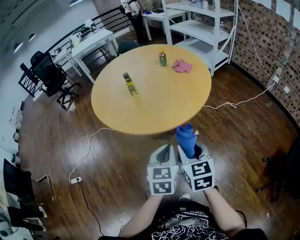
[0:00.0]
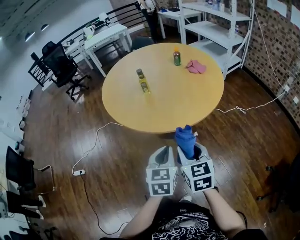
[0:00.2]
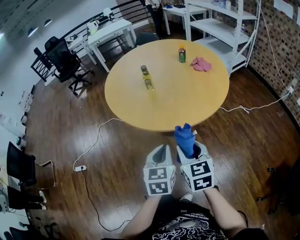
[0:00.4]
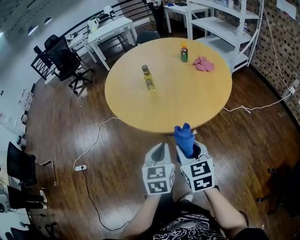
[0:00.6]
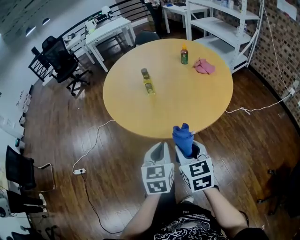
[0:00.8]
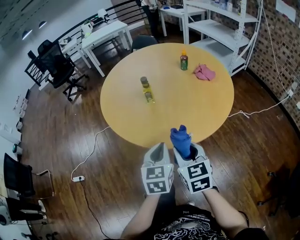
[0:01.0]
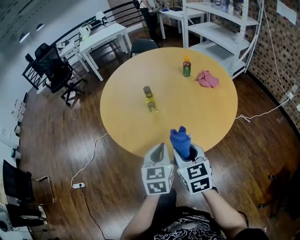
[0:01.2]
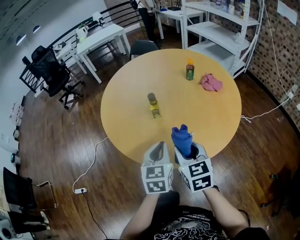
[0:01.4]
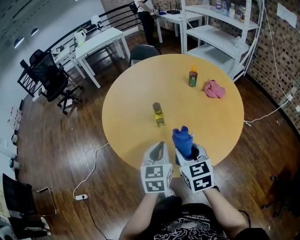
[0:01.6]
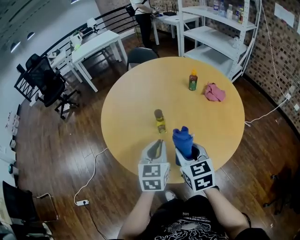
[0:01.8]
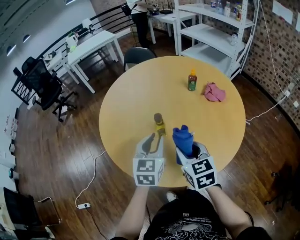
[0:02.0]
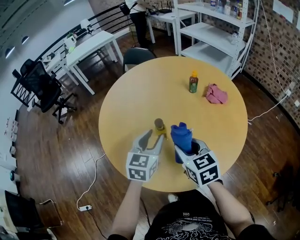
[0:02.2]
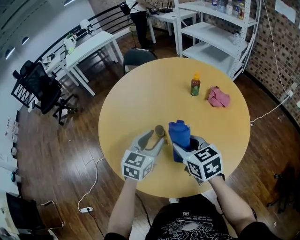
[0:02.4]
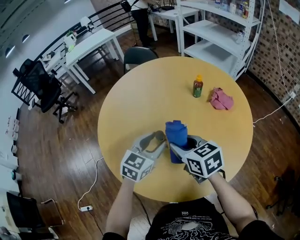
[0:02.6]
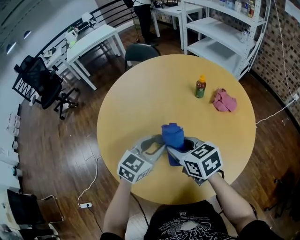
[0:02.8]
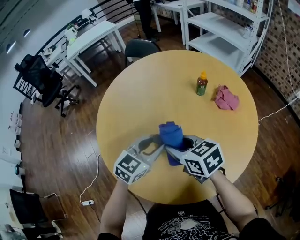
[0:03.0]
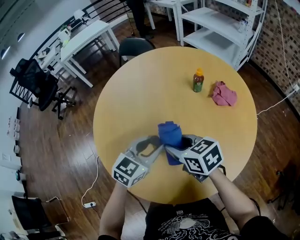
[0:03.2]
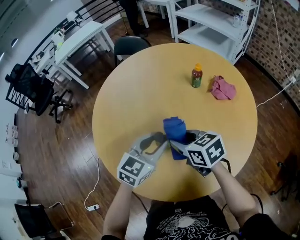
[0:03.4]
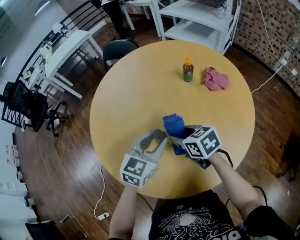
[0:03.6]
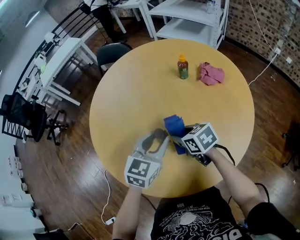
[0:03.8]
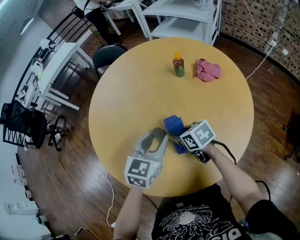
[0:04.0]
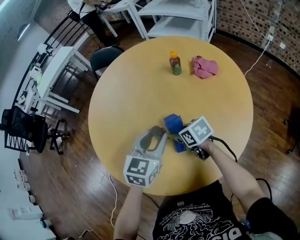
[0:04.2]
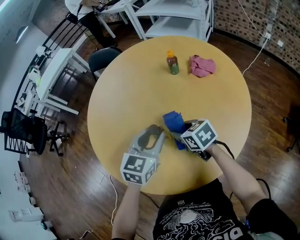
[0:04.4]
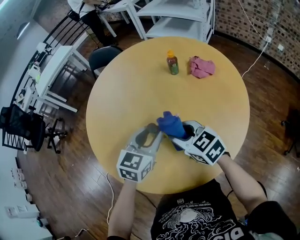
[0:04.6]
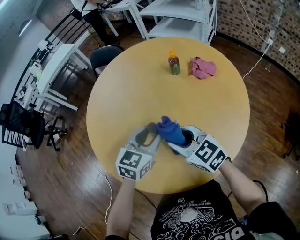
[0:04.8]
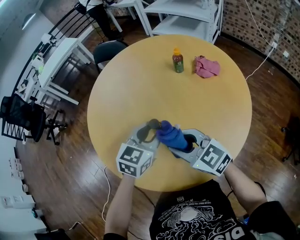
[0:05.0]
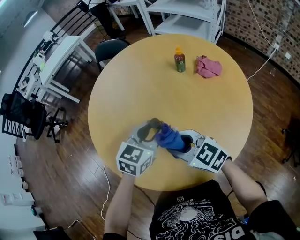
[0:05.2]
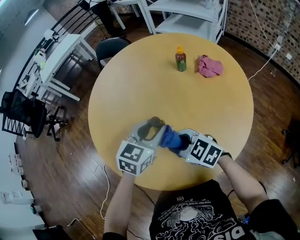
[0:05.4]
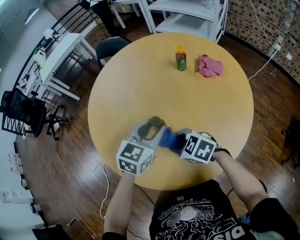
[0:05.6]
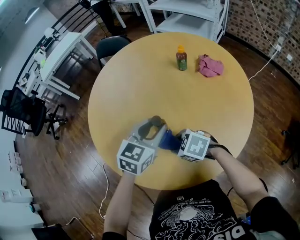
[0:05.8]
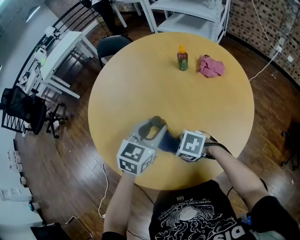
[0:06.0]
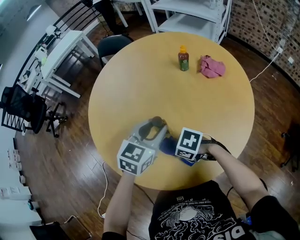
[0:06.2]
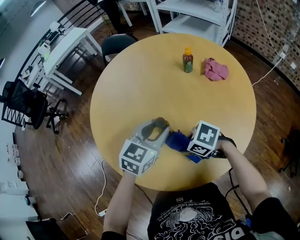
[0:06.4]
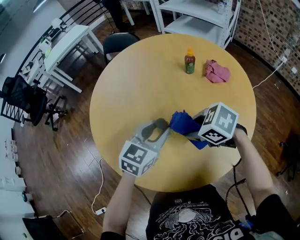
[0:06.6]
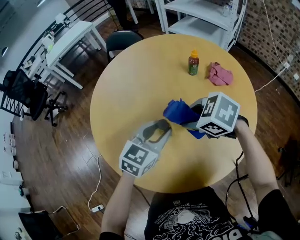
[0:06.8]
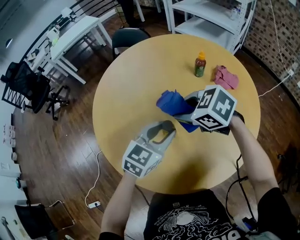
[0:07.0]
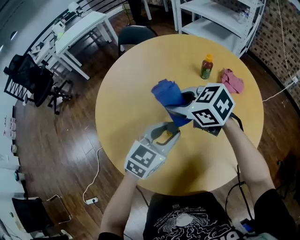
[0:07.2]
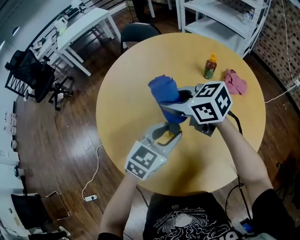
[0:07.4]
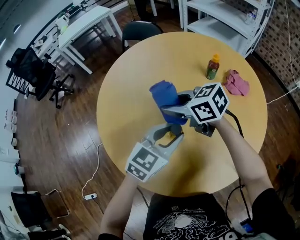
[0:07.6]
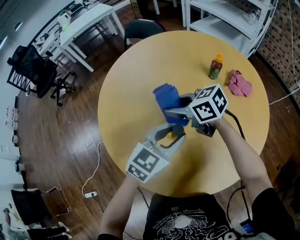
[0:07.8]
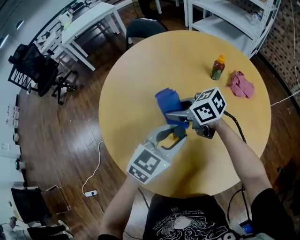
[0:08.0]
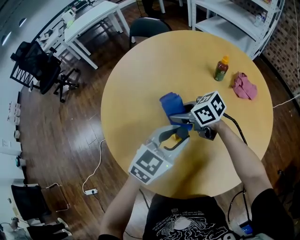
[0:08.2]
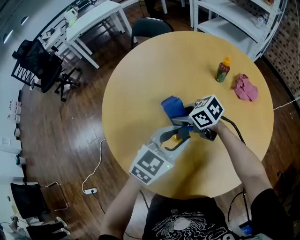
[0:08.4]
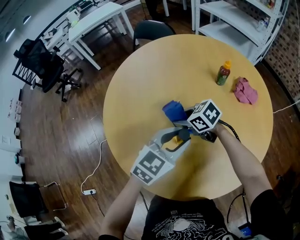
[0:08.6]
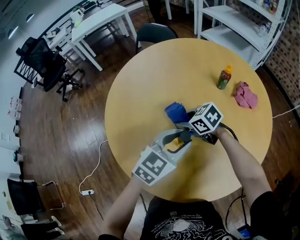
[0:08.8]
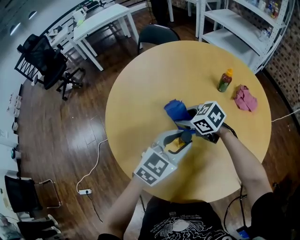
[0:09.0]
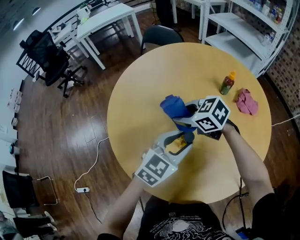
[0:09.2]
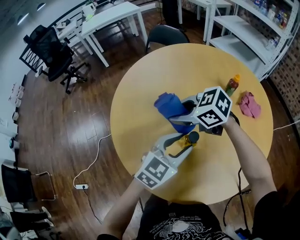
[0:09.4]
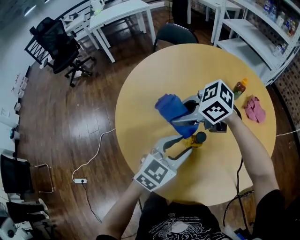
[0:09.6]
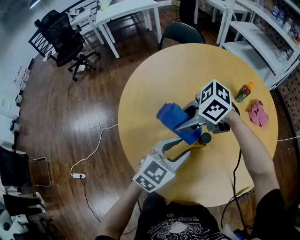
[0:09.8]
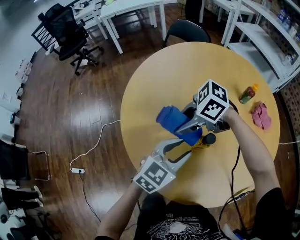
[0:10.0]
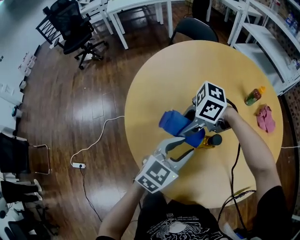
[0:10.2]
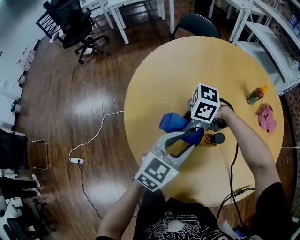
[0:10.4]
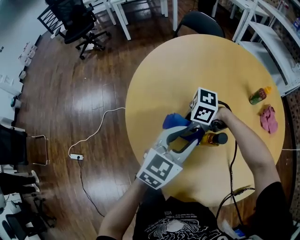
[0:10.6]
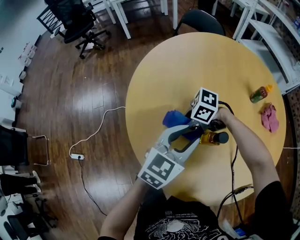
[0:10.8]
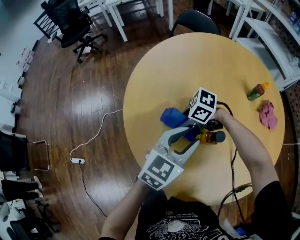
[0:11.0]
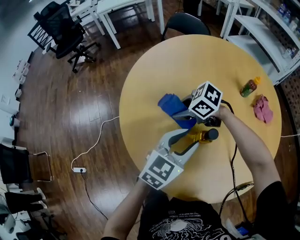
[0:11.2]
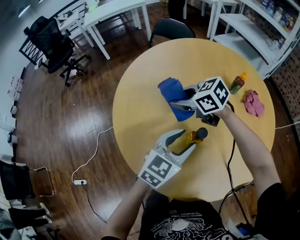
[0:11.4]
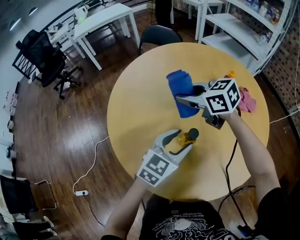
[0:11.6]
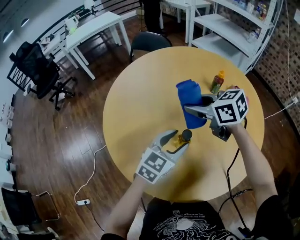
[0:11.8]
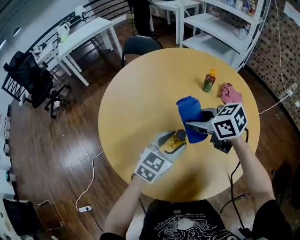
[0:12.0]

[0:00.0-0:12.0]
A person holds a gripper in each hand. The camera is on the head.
0:00.0 to 0:01.6: The two grippers go about 30 cm forward and to the left.
0:01.6 to 0:03.0: The grippers both shift forward by some 15 cm. The right gripper swivels approximately 30 degrees; the left gripper swivels approximately 40 degrees, and opens up.
0:03.0 to 0:04.4: The right gripper goes approximately 10 cm downward, and swivels about 20 degrees.
0:04.4 to 0:06.0: The right gripper moves some 10 cm upward and comes back, and turns by some 40 degrees.
0:06.0 to 0:07.6: The right gripper ends up about 25 cm from where it was, and points its fingers some 30 degrees further upward.
0:07.6 to 0:09.0: The right gripper heads downward, covering some 10 cm.
0:09.0 to 0:10.4: The left gripper shifts by some 10 cm. The right gripper reaches approximately 10 cm upward, then returns, and turns by some 60 degrees.
0:10.4 to 0:12.0: The left gripper moves approximately 10 cm, and rotates roughly 20 degrees, while the right gripper ends up roughly 20 cm from where it was, and rotates some 70 degrees.

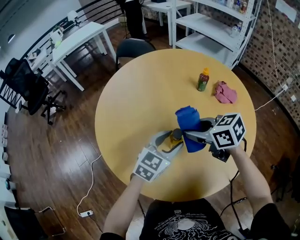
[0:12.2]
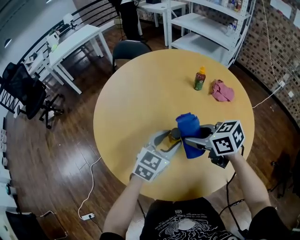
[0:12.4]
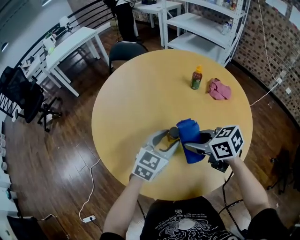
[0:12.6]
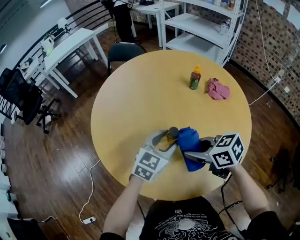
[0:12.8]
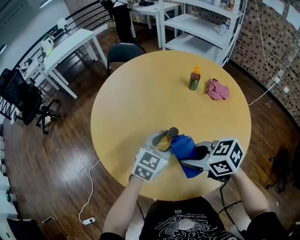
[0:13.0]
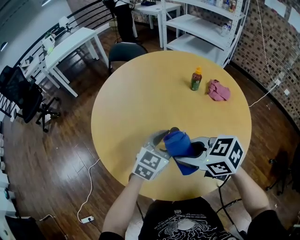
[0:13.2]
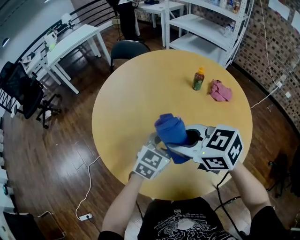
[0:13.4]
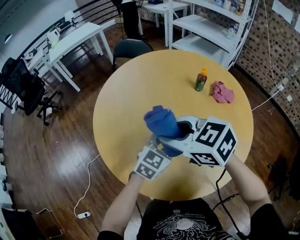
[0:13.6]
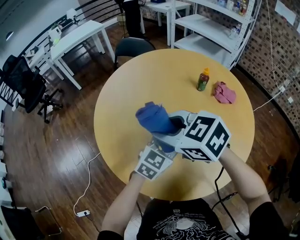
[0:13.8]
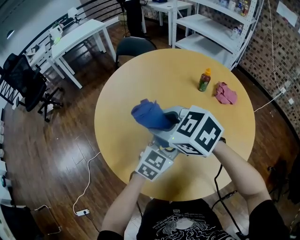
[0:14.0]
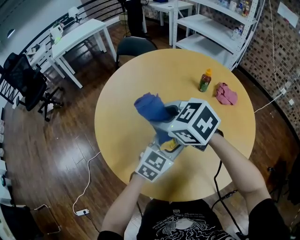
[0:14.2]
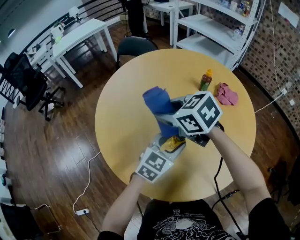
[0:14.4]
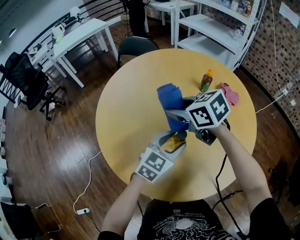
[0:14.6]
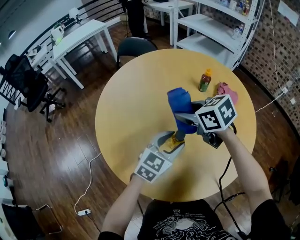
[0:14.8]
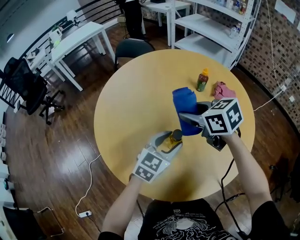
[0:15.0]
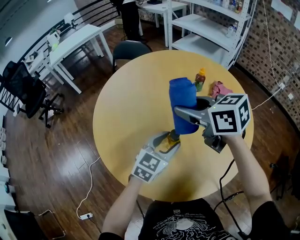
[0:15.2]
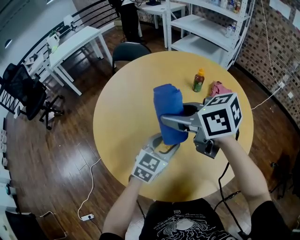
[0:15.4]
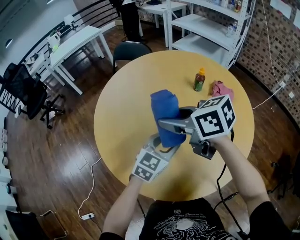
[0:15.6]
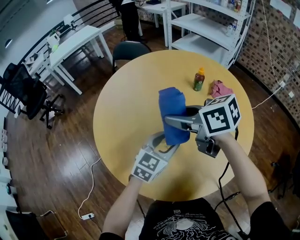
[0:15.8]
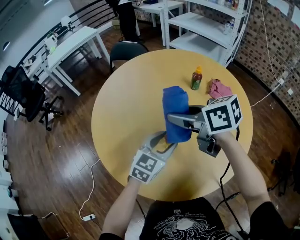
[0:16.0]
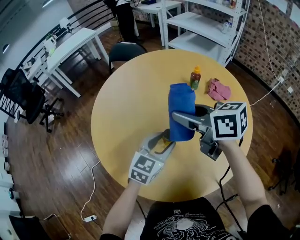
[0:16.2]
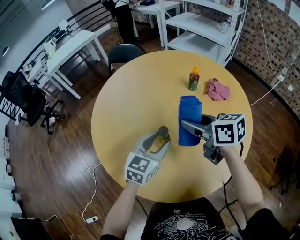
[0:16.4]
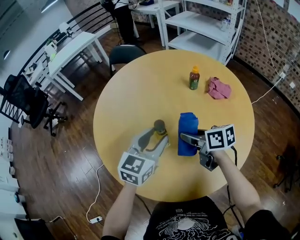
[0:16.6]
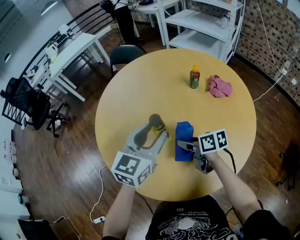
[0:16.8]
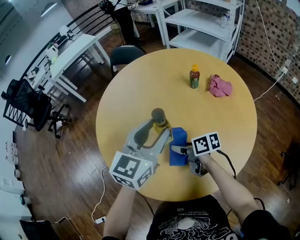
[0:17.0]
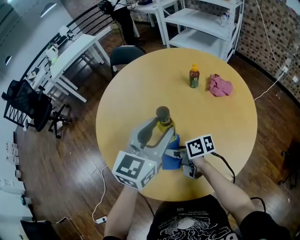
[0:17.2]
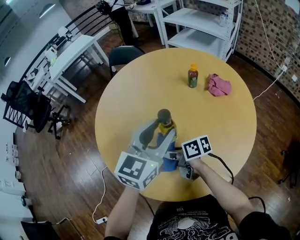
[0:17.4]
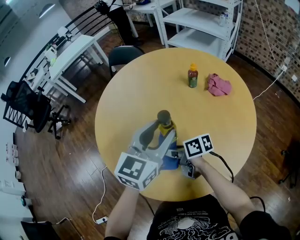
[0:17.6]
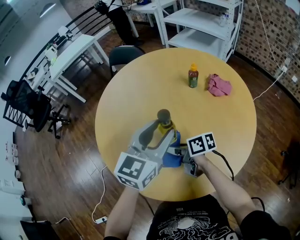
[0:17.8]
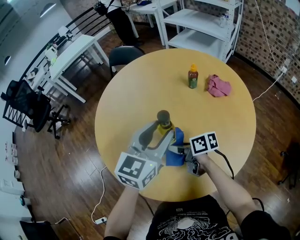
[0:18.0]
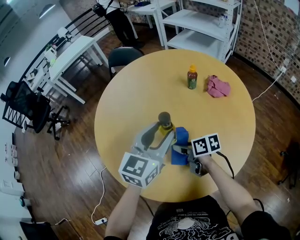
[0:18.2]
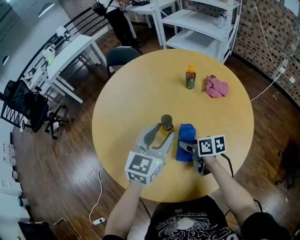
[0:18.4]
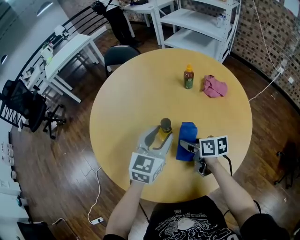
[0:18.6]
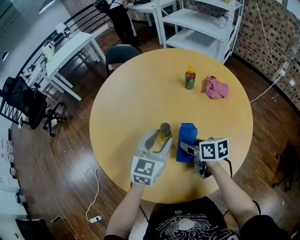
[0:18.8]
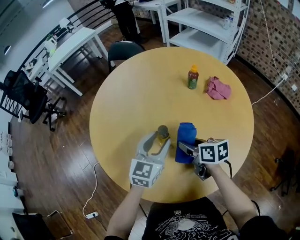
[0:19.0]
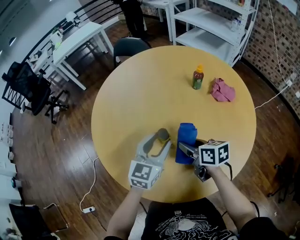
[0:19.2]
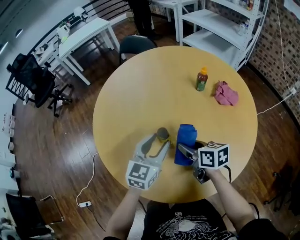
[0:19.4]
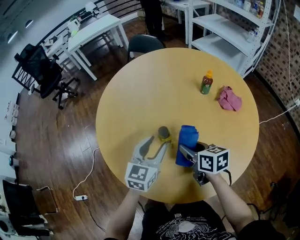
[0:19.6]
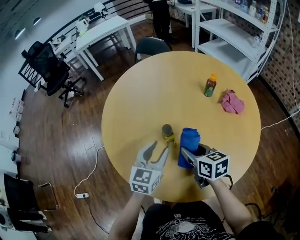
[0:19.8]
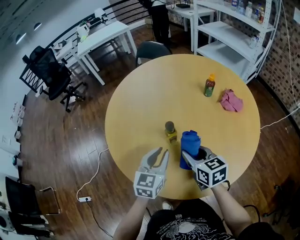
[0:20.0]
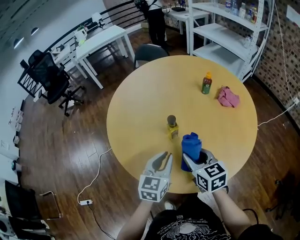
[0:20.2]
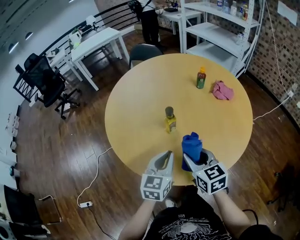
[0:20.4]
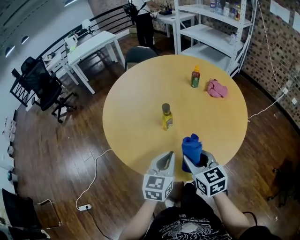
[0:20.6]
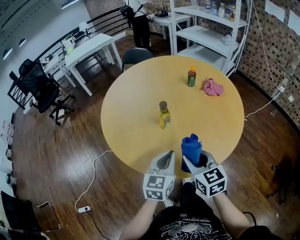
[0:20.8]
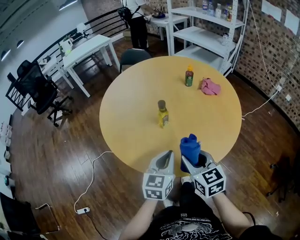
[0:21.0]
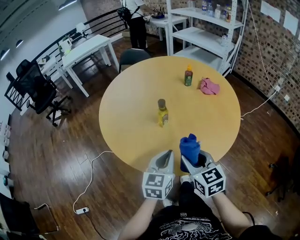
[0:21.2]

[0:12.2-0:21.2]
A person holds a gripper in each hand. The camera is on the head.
0:12.2 to 0:13.8: The right gripper heads to the left and upward, covering some 15 cm, and turns by about 20 degrees.
0:13.8 to 0:15.2: The right gripper is displaced to the right and forward by approximately 10 cm, and swivels roughly 20 degrees.
0:15.2 to 0:16.6: The left gripper is displaced upward by about 5 cm, while the right gripper goes some 15 cm downward, and changes its angle by roughly 30 degrees.
0:16.6 to 0:18.2: The right gripper is displaced downward by some 10 cm, and travels to the left and back again, some 10 cm each way.
0:18.2 to 0:19.8: The left gripper travels downward by approximately 10 cm, and turns by roughly 30 degrees. The right gripper shifts some 5 cm upward, and rotates some 30 degrees.
0:19.8 to 0:21.2: The two grippers go some 20 cm backward. The left gripper closes its fingers. Meanwhile the right gripper turns by approximately 30 degrees.

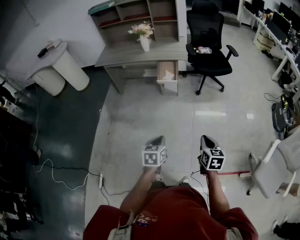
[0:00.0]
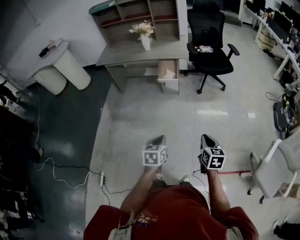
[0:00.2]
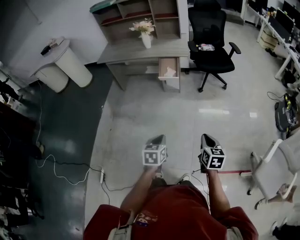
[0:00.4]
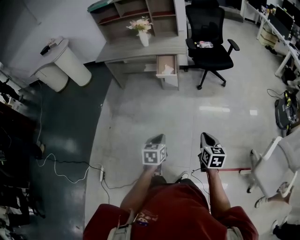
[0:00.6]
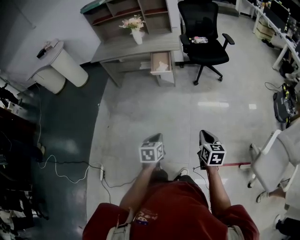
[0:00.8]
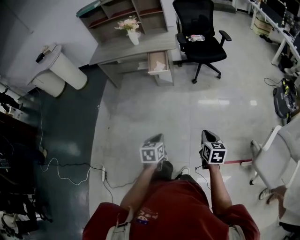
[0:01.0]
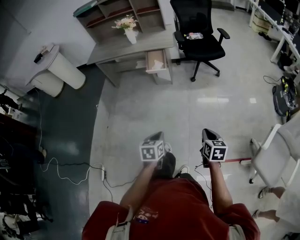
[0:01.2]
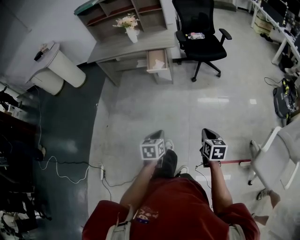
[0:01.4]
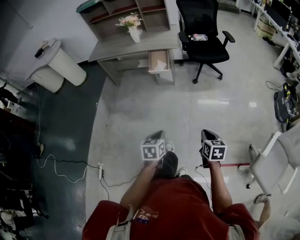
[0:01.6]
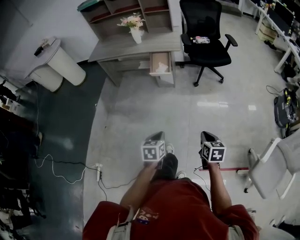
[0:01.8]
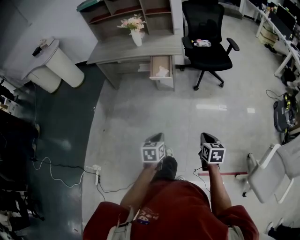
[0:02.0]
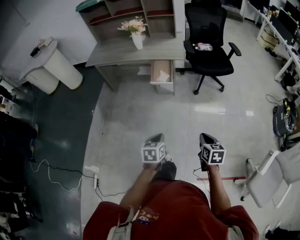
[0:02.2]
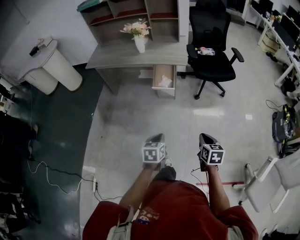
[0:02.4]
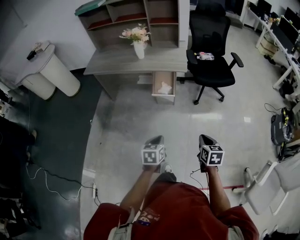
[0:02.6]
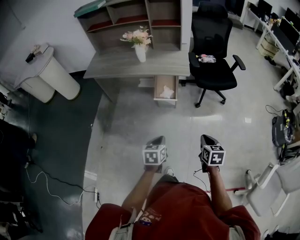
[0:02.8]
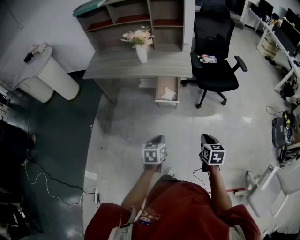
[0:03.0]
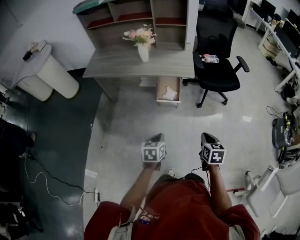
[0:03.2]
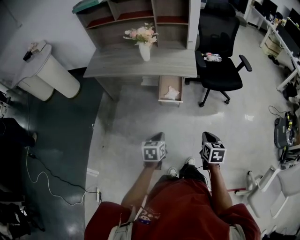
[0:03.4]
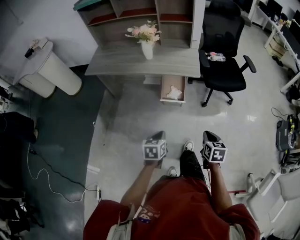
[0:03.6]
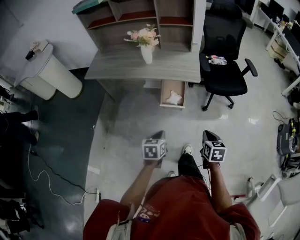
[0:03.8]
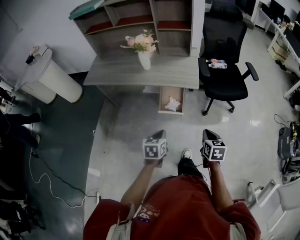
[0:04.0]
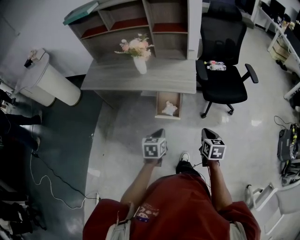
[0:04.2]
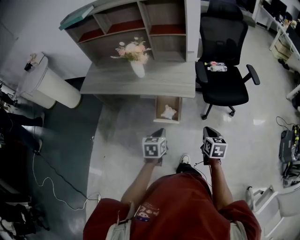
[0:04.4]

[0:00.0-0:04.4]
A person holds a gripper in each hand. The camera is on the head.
0:00.0 to 0:01.4: The grippers both shift to the right by approximately 10 cm.
0:01.4 to 0:03.0: The grippers both shift forward by approximately 35 cm.
0:03.0 to 0:04.4: Both grippers move forward, roughly 25 cm.
